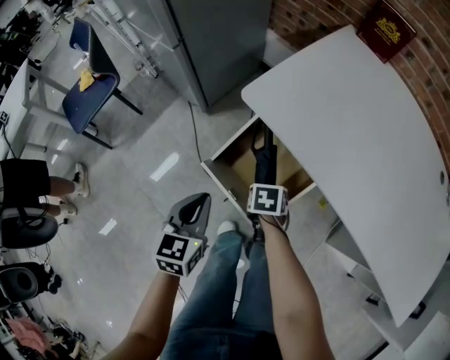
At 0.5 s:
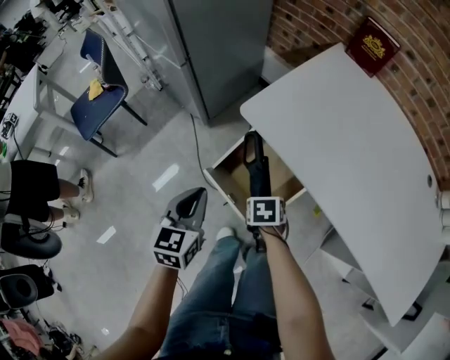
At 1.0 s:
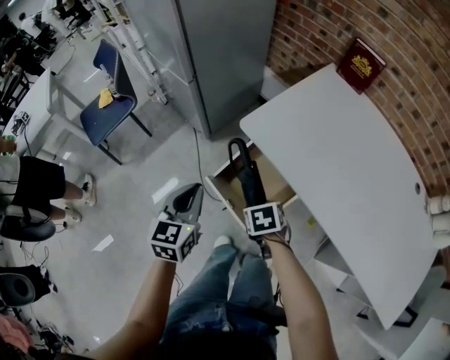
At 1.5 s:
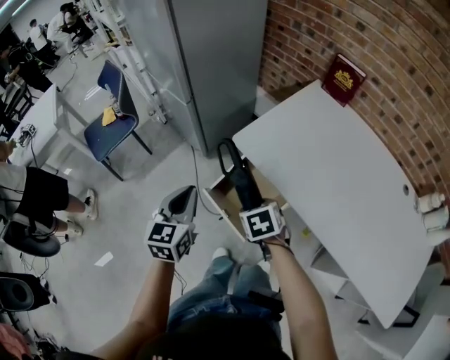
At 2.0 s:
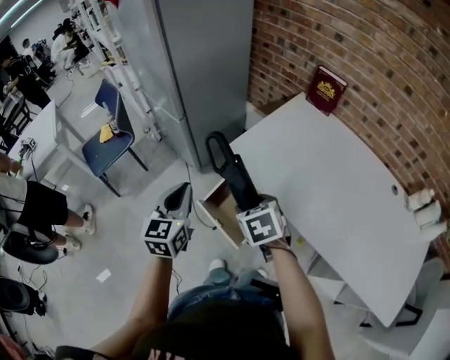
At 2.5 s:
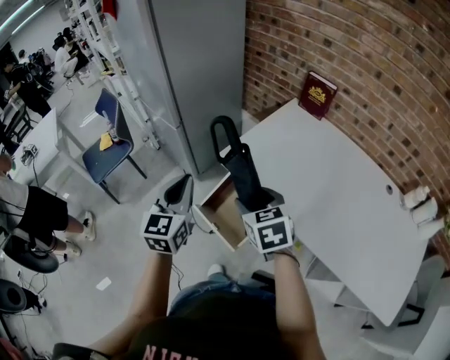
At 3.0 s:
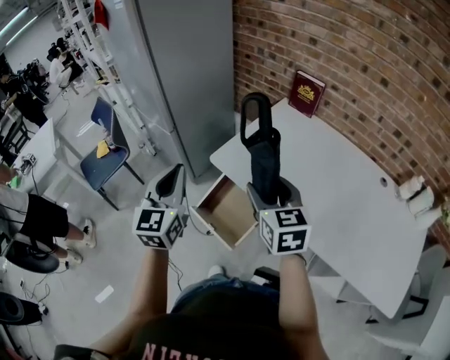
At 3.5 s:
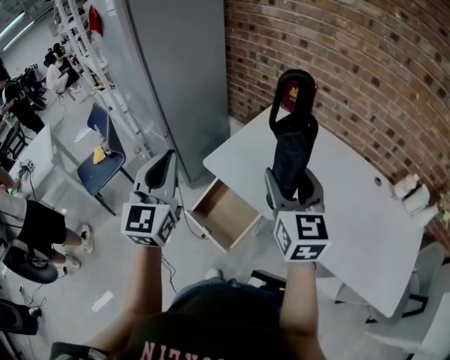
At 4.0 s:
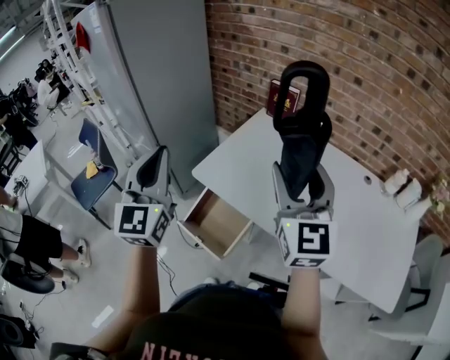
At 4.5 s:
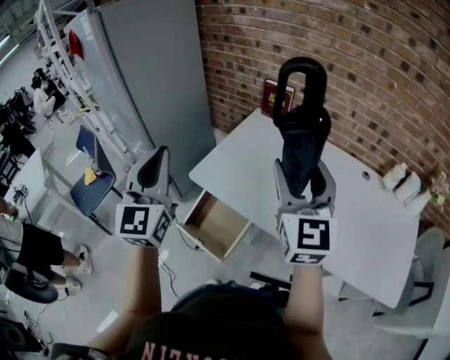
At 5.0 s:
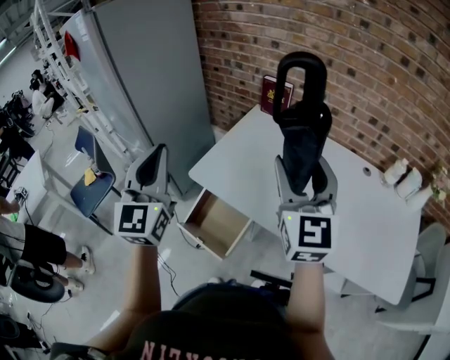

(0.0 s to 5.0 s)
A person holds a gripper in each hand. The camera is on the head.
0.0 s - 2.5 s: Both grippers travel together upward, roughly 35 cm. The right gripper tilts its fingers about 40 degrees upward; the left gripper changes its angle by roughly 30 degrees.
2.5 s - 5.0 s: The left gripper travels upward and to the right by about 20 cm, and turns by about 20 degrees. The right gripper goes about 30 cm upward and to the right, and points its fingers roughly 40 degrees further upward.

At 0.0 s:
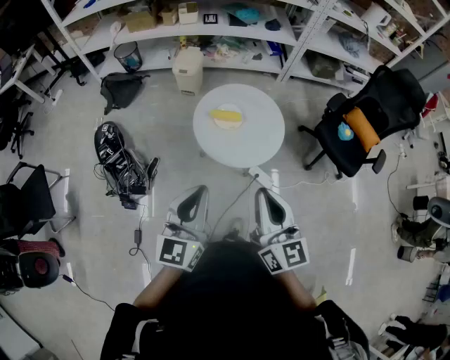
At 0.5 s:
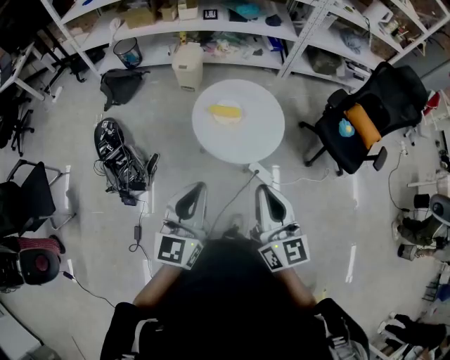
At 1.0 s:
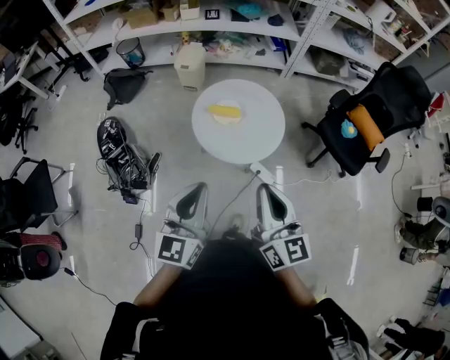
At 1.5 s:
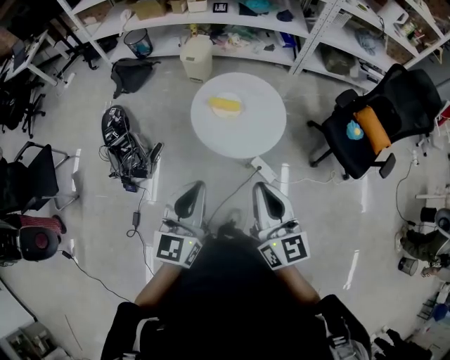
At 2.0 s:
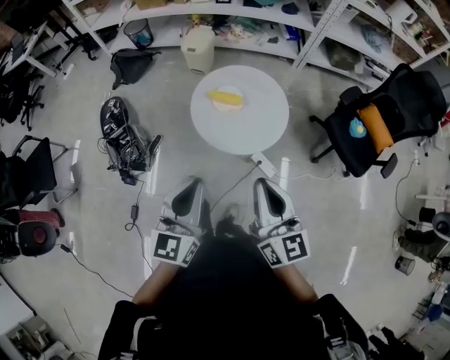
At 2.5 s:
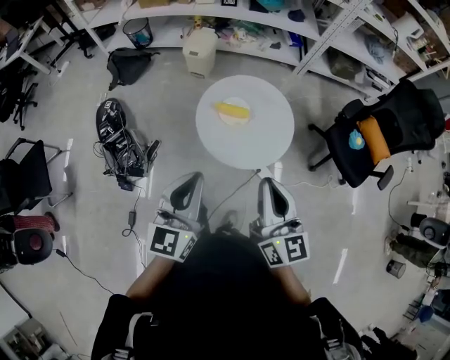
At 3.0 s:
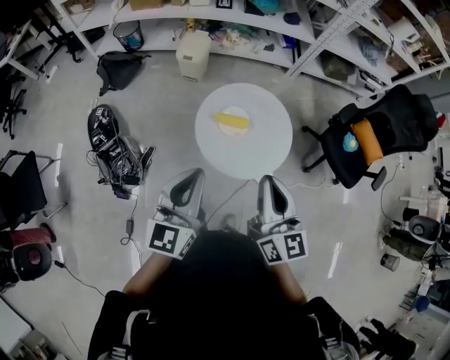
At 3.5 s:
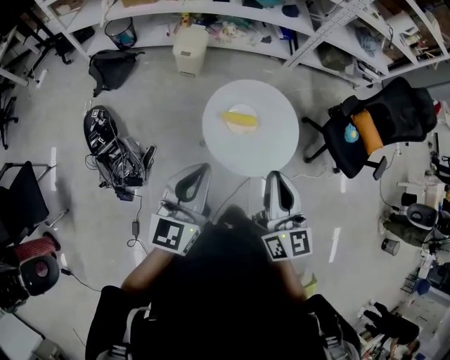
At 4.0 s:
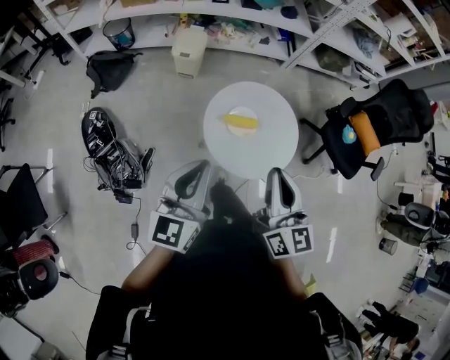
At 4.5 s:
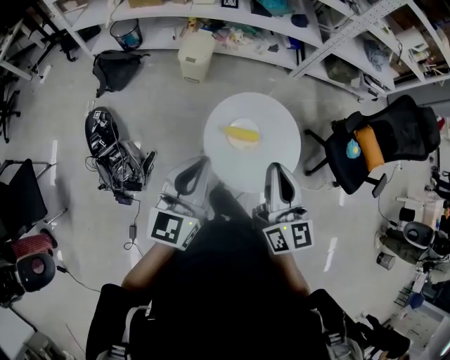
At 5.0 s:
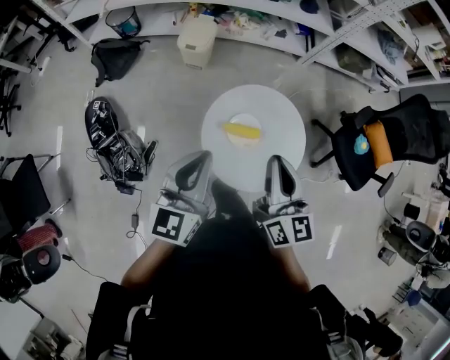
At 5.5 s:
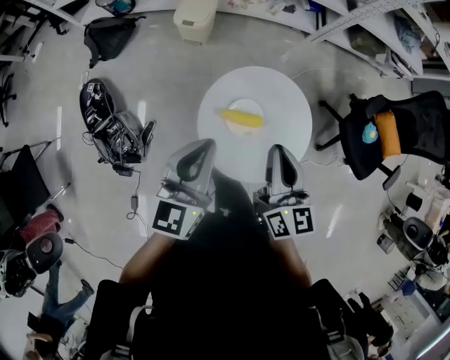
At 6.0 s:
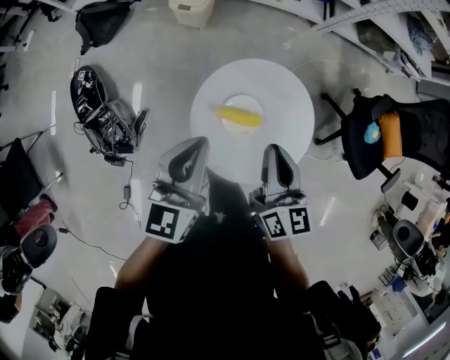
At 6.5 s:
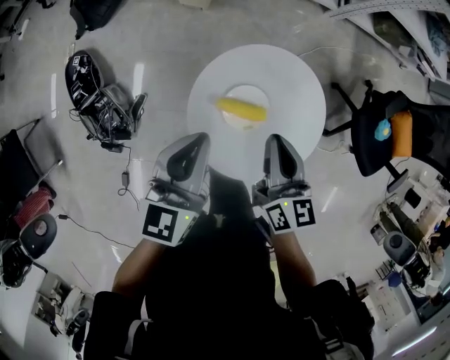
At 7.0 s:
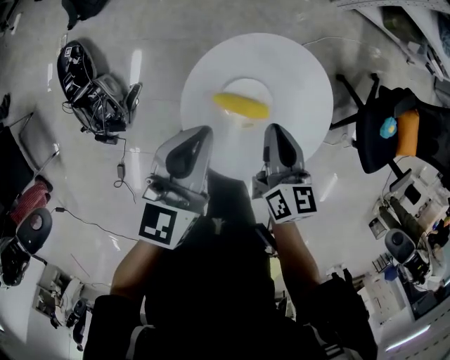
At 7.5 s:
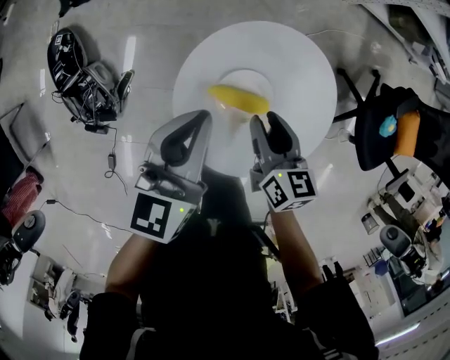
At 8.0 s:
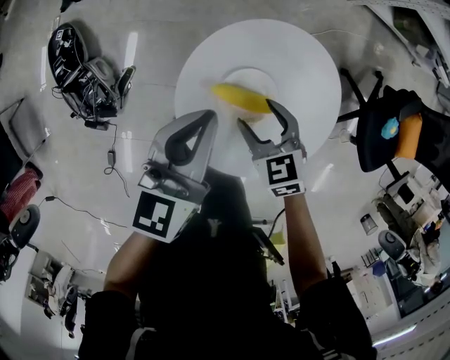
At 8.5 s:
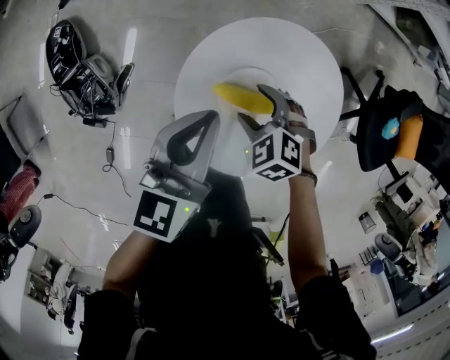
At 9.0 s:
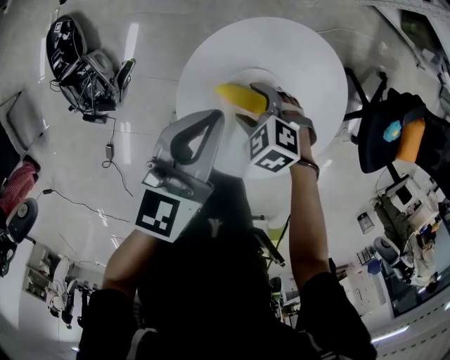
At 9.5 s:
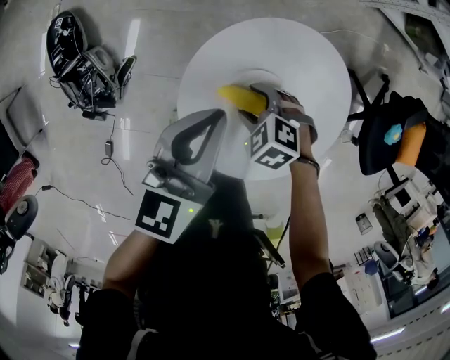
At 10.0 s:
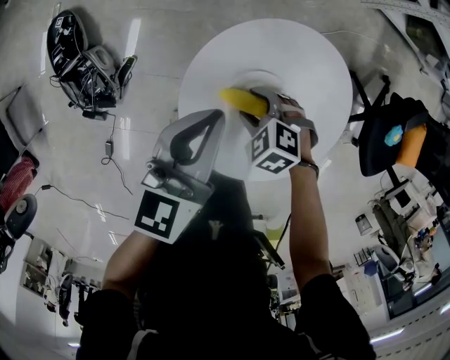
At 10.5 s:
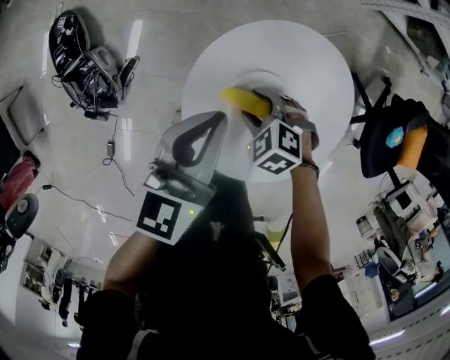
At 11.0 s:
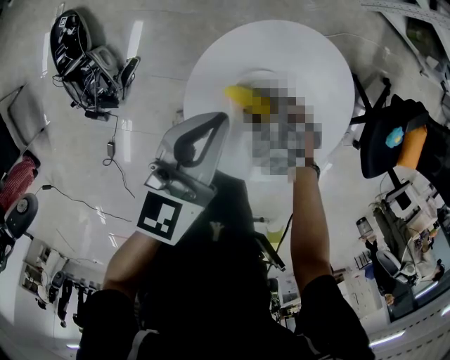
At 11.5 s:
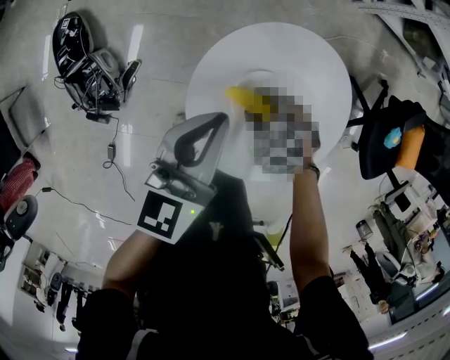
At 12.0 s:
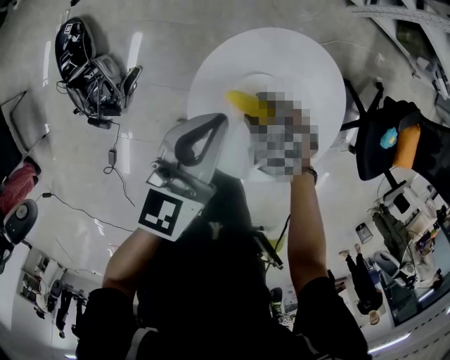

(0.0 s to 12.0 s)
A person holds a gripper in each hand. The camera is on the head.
0.0 s - 2.0 s: The grippers both shift to the right by some 5 cm.
2.0 s - 4.0 s: The two grippers go about 25 cm forward and to the left.
4.0 s - 6.0 s: The two grippers go about 25 cm forward and downward.
6.0 s - 8.0 s: The left gripper is displaced downward by approximately 15 cm. The right gripper goes about 25 cm downward, tilts its fingers some 30 degrees downward, and opens its fingers.
8.0 s - 10.0 s: The right gripper moves downward, about 10 cm, and turns by some 40 degrees.
10.0 s - 12.0 s: The grippers move only a little.

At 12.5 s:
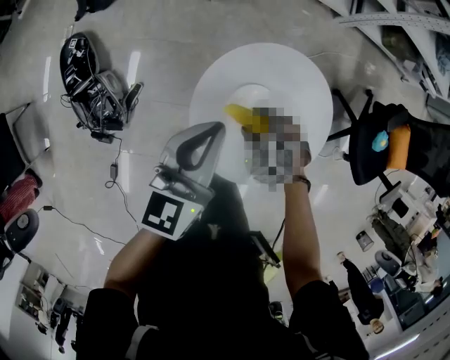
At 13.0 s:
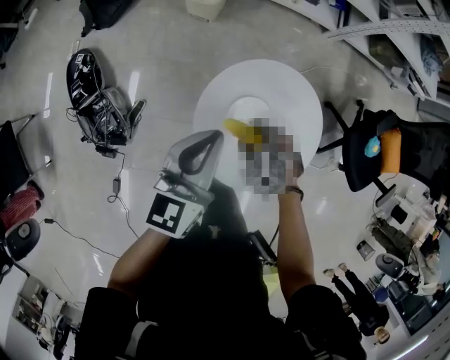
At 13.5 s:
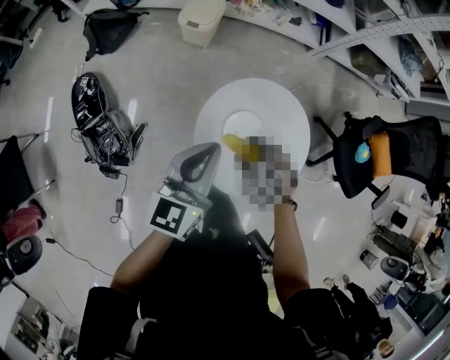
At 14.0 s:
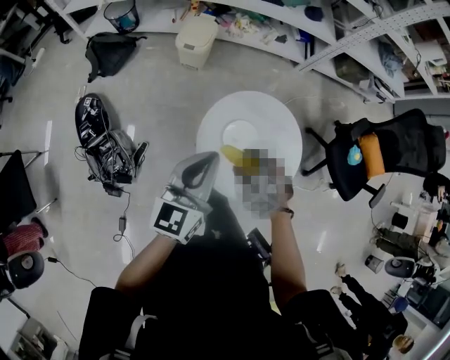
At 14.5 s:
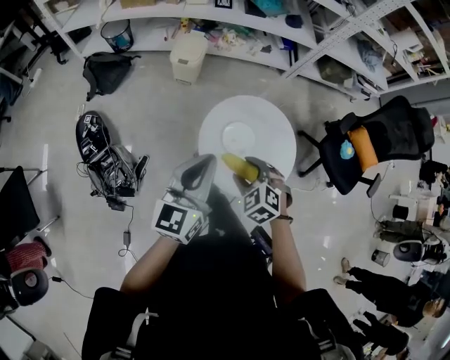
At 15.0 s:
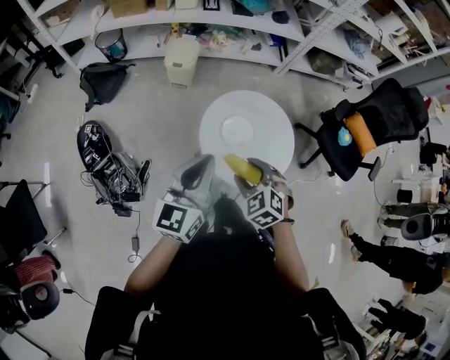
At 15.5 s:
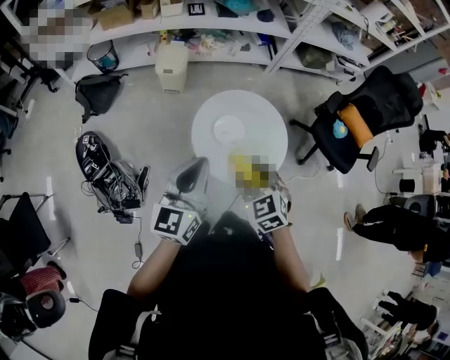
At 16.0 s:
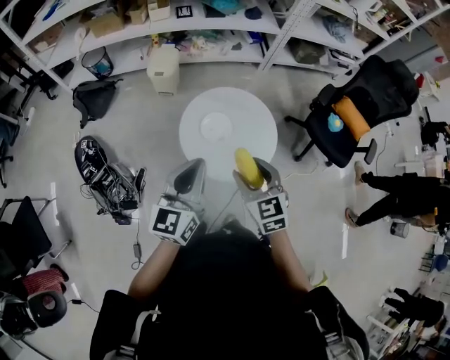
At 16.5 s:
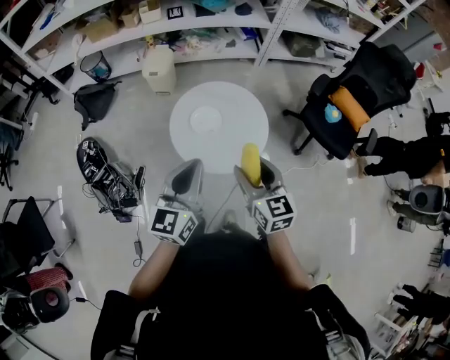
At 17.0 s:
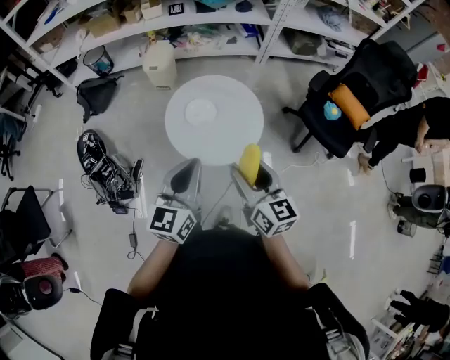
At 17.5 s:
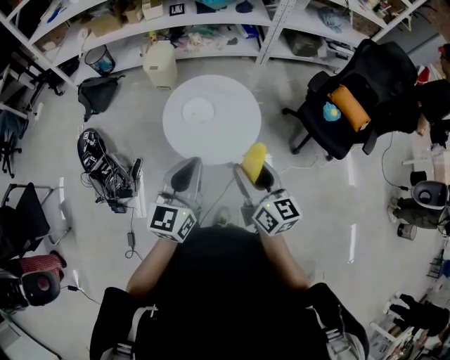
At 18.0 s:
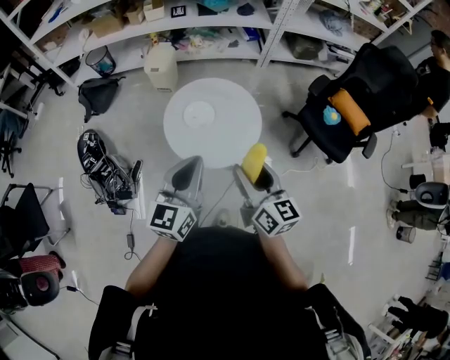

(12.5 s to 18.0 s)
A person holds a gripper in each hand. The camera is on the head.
12.5 s - 14.5 s: The right gripper heads upward and backward, covering approximately 20 cm, and turns by approximately 20 degrees; the left gripper travels upward, backward and to the left by roughly 20 cm.
14.5 s - 16.0 s: The left gripper shifts roughly 10 cm backward and to the right; the right gripper moves upward, to the right and backward, approximately 15 cm, and changes its angle by about 40 degrees.
16.0 s - 18.0 s: The two grippers go roughly 15 cm to the right and backward. The right gripper turns by some 40 degrees.

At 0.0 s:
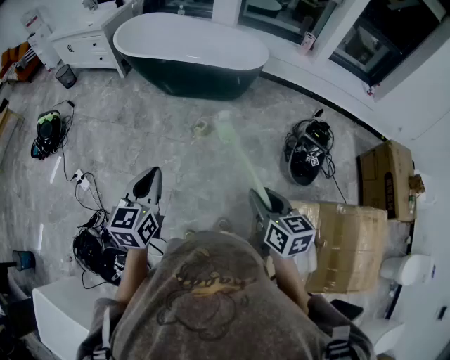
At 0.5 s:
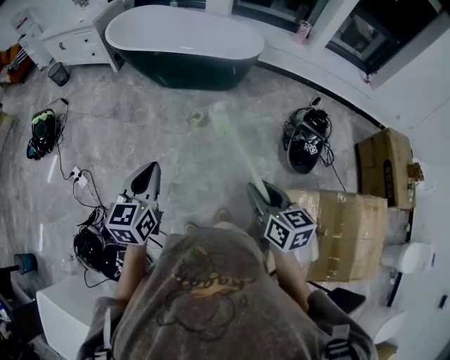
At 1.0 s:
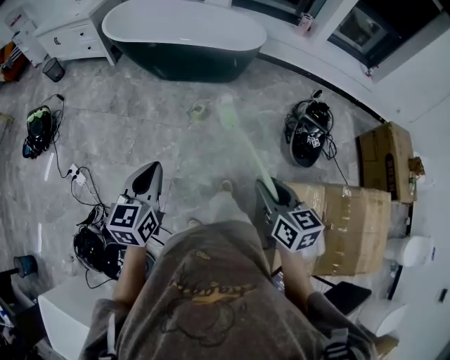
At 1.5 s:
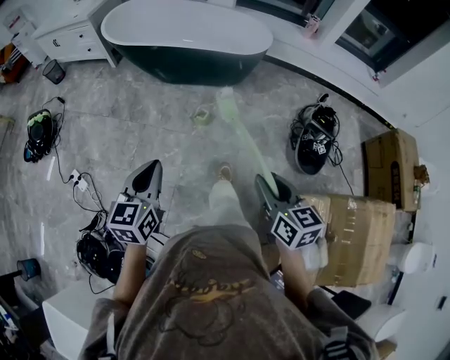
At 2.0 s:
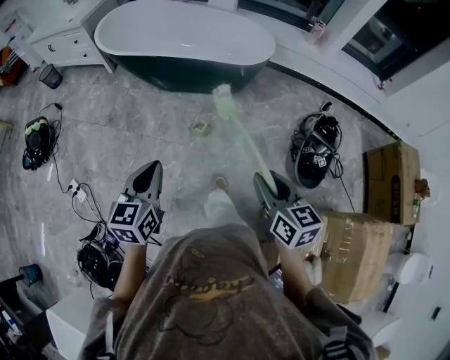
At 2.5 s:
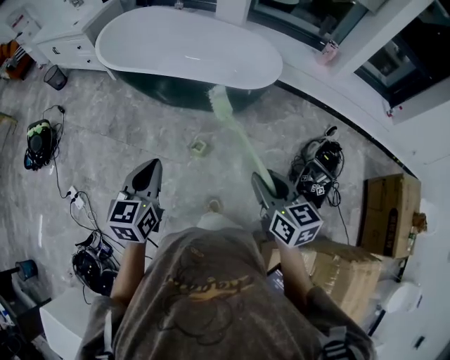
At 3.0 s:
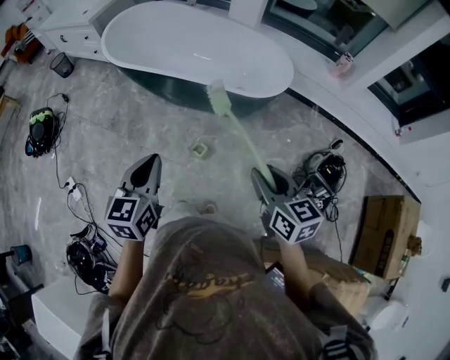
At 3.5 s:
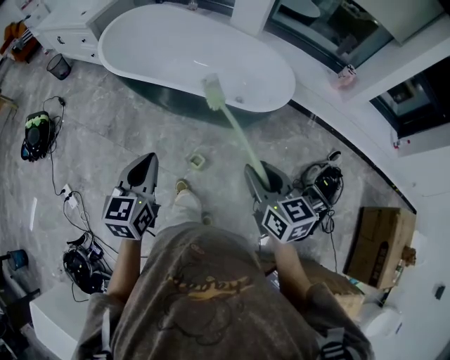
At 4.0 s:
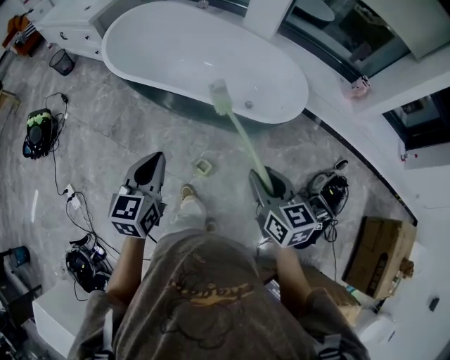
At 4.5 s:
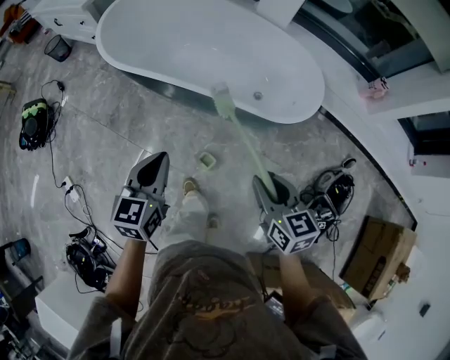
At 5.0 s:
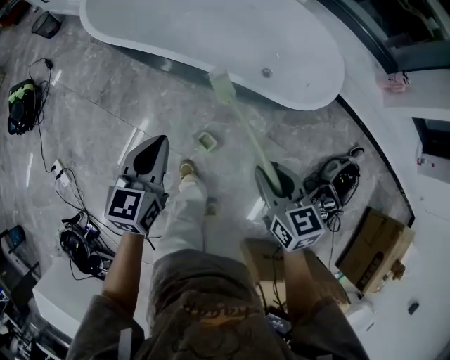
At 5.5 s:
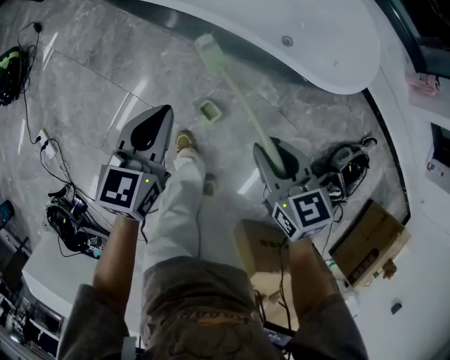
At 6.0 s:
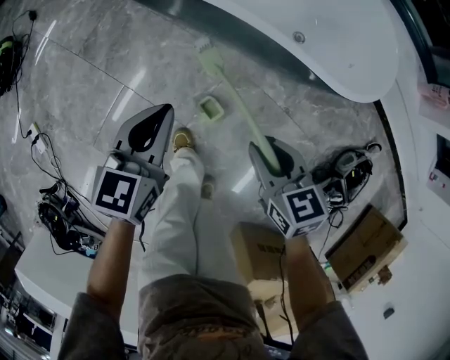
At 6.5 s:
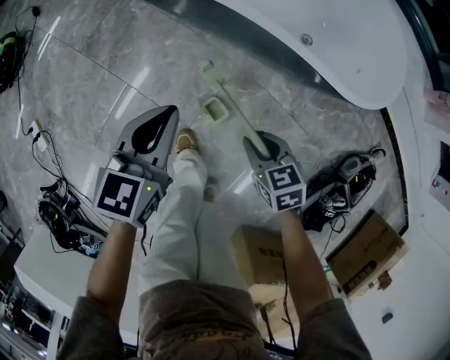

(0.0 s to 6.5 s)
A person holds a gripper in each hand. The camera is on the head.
0.0 s - 2.0 s: Both grippers travel together forward, approximately 20 cm.
2.0 s - 4.5 s: The two grippers travel together, forward, about 40 cm.
4.5 s - 6.5 s: The grippers both shift downward by some 30 cm. The right gripper swivels roughly 30 degrees.
